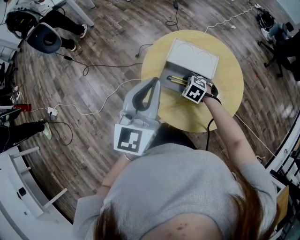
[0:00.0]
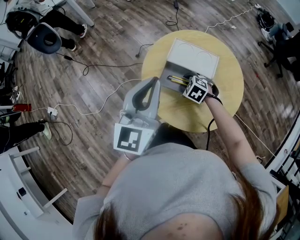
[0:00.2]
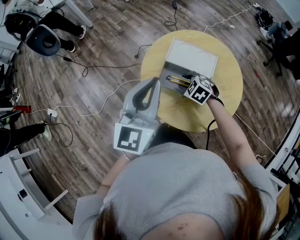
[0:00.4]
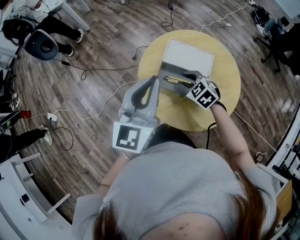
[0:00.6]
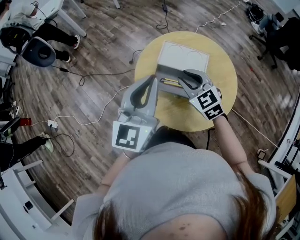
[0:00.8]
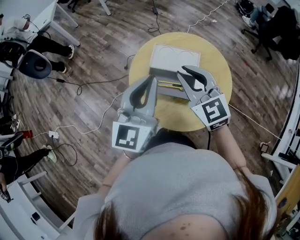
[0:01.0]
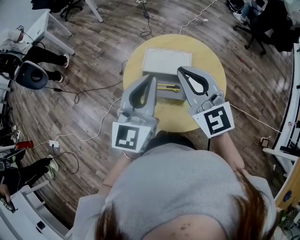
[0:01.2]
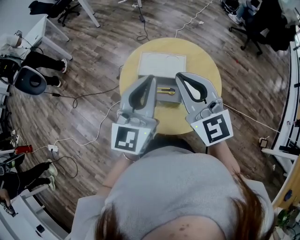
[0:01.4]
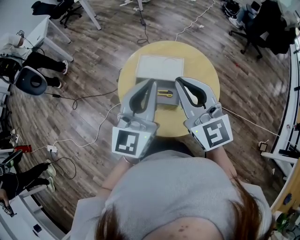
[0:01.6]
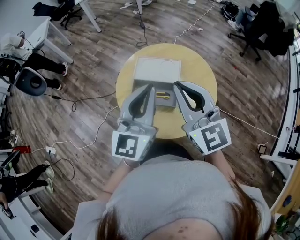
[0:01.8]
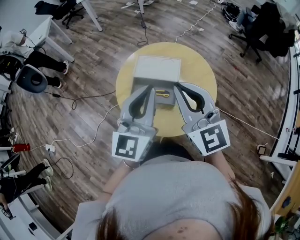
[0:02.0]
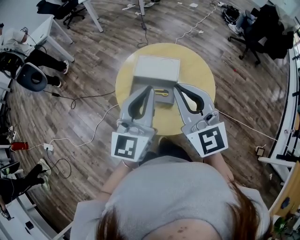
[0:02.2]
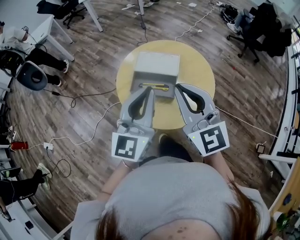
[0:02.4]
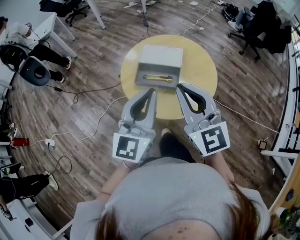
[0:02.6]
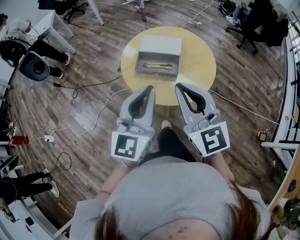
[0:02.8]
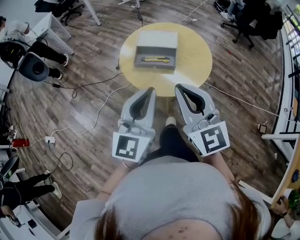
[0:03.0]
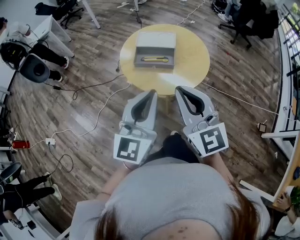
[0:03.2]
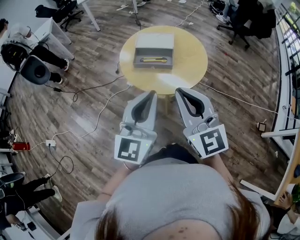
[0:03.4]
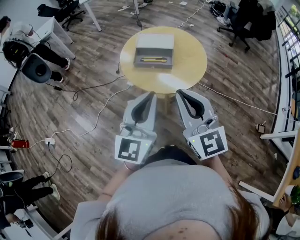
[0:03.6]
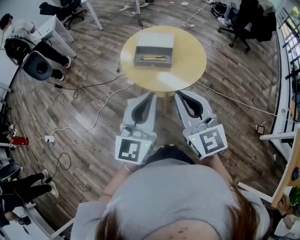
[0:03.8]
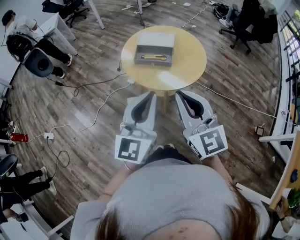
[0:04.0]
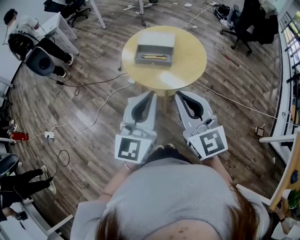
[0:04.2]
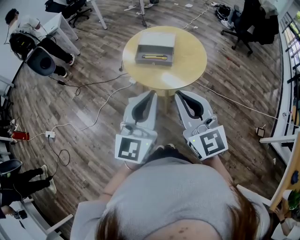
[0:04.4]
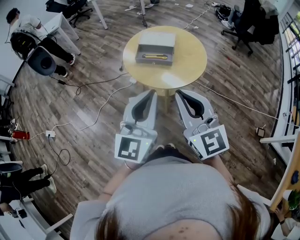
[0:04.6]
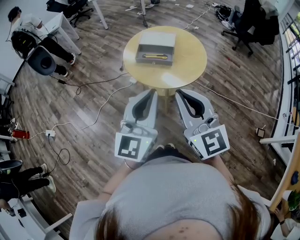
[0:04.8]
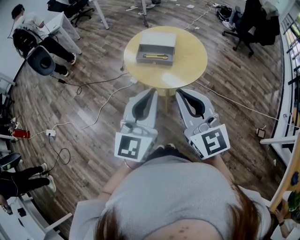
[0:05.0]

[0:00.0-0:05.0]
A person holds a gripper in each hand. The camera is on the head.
0:00.0 to 0:01.6: The right gripper shifts about 35 cm upward, angles its fingers upward, by roughly 70 degrees, and closes its fingers. Meanwhile the left gripper moves to the right, about 10 cm.
0:01.6 to 0:03.4: Both grippers move backward, some 25 cm.
0:03.4 to 0:05.0: The two grippers go some 5 cm backward.

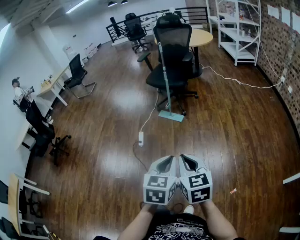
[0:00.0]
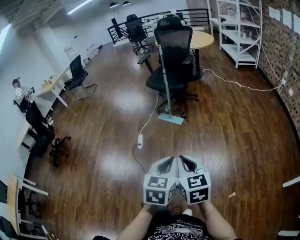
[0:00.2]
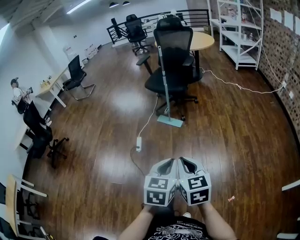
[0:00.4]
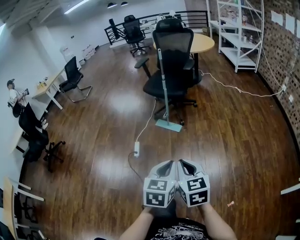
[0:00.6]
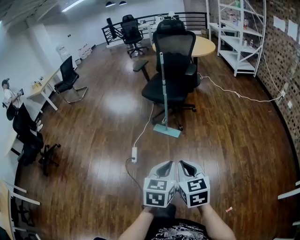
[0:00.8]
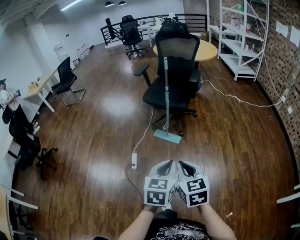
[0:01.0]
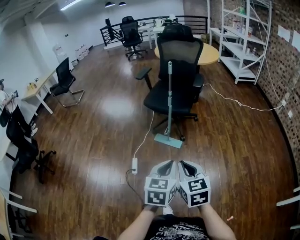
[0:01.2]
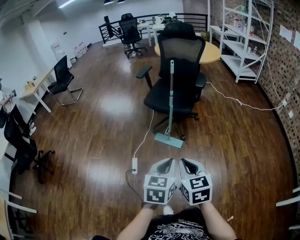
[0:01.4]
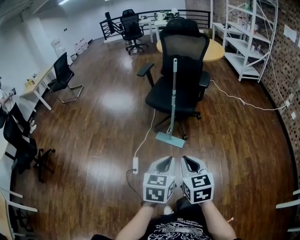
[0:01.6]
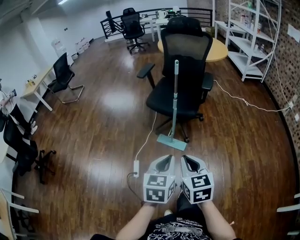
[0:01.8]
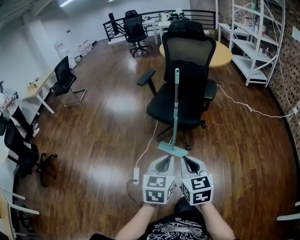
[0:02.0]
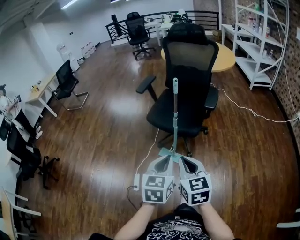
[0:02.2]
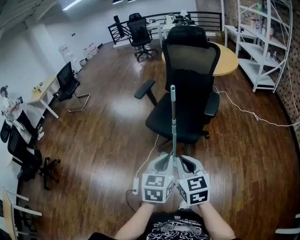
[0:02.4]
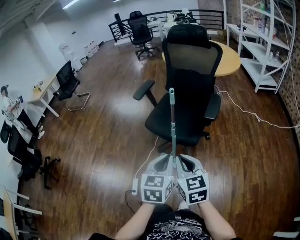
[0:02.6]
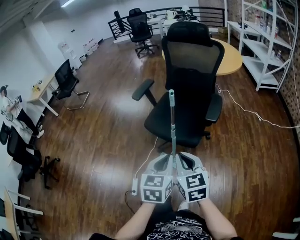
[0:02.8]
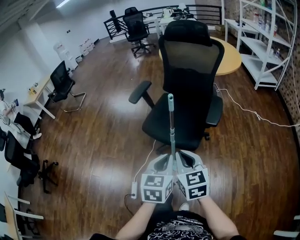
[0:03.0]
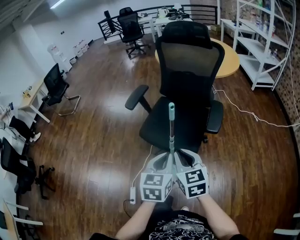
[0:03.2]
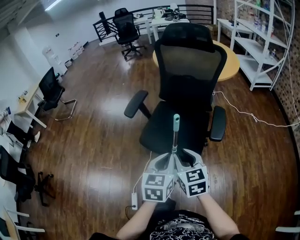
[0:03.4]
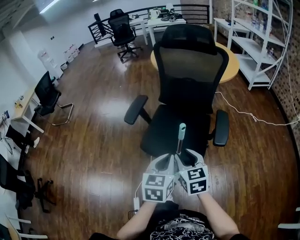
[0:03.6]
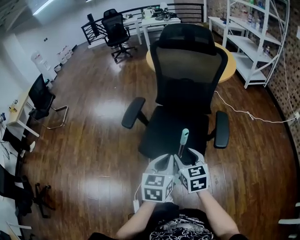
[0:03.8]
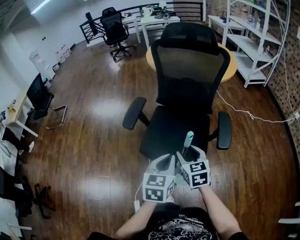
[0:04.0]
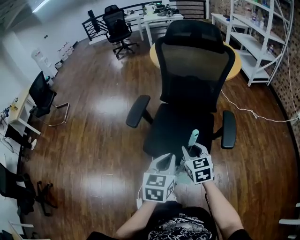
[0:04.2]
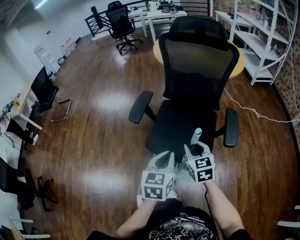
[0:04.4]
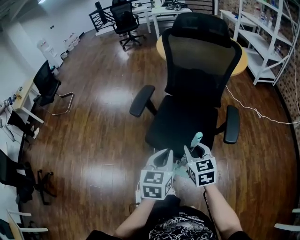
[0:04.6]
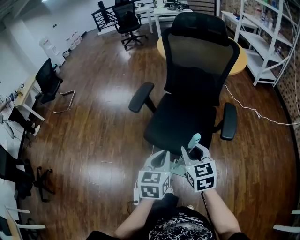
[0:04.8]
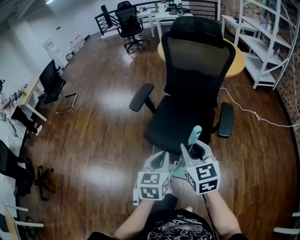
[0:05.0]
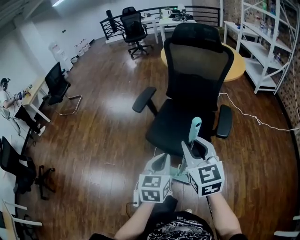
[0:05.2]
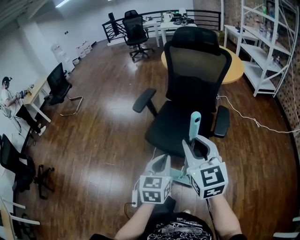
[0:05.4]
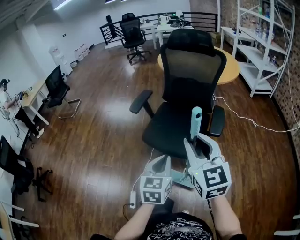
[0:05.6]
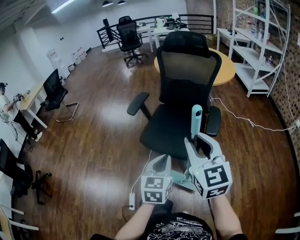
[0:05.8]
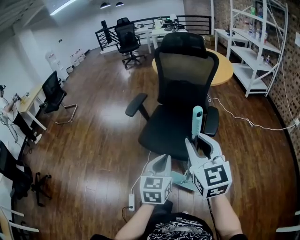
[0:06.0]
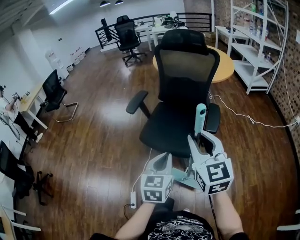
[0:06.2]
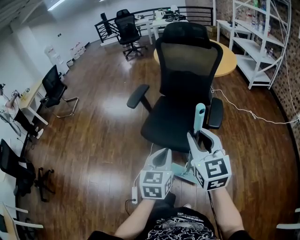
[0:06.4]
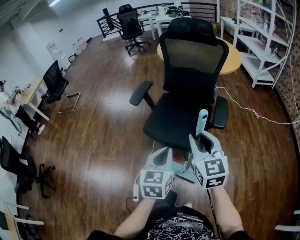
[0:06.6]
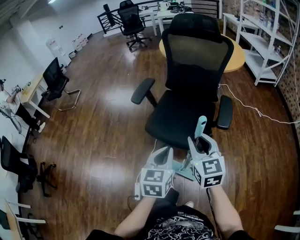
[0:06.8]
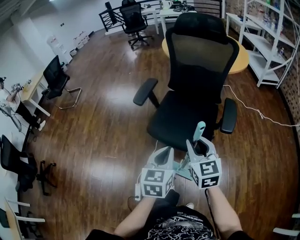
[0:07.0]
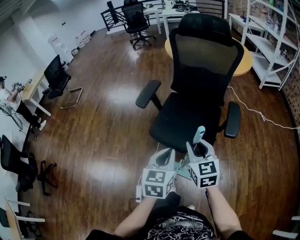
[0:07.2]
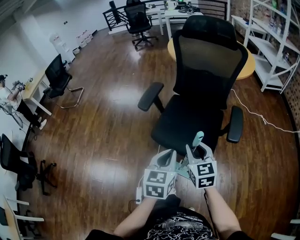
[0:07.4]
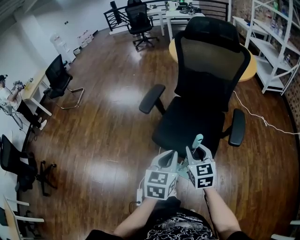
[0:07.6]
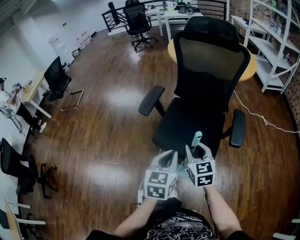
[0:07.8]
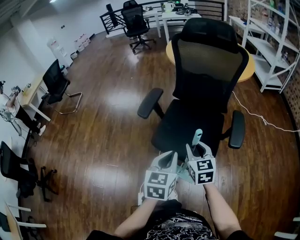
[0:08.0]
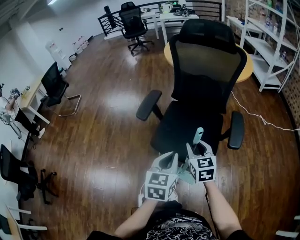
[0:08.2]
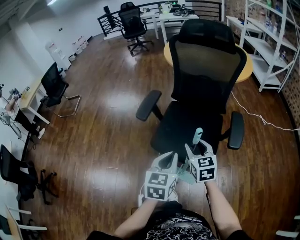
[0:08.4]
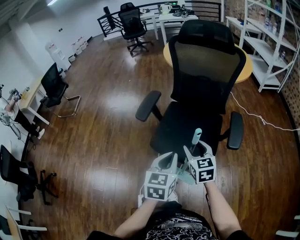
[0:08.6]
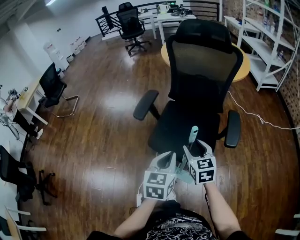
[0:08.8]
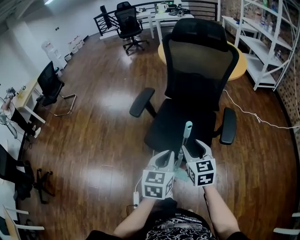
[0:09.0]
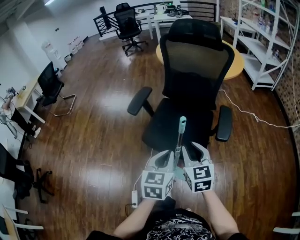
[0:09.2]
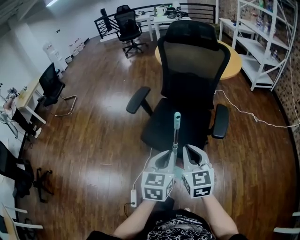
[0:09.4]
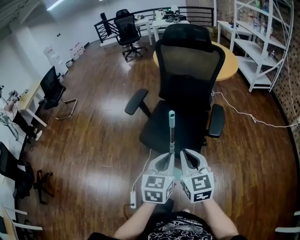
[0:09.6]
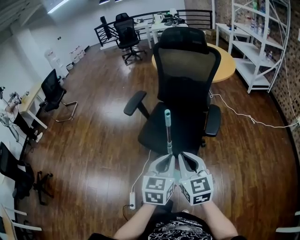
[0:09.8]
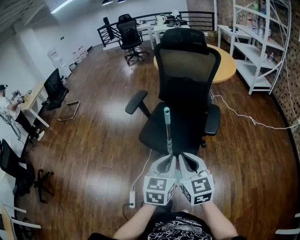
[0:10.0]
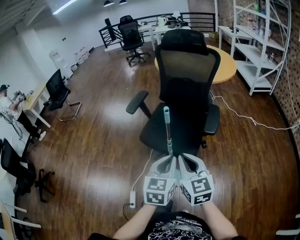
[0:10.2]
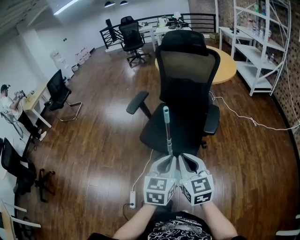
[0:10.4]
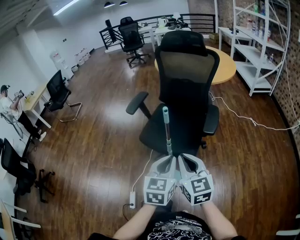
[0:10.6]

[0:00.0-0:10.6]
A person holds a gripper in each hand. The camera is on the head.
0:00.0 to 0:01.6: The two grippers go roughly 40 cm forward.
0:01.6 to 0:03.0: Both grippers travel together forward, about 35 cm.
0:03.0 to 0:04.6: The left gripper shifts some 20 cm forward and to the left; the right gripper is displaced forward by some 20 cm, and opens up.
0:04.6 to 0:06.0: The left gripper is displaced backward and to the right by about 15 cm, while the right gripper shifts about 25 cm upward and backward, and changes its angle by approximately 20 degrees.
0:06.0 to 0:07.6: The right gripper heads downward and forward, covering roughly 25 cm. Meanwhile the left gripper moves forward, to the left and downward, about 15 cm.
0:07.6 to 0:09.0: The right gripper opens its fingers.
0:09.0 to 0:10.6: The left gripper goes roughly 15 cm backward and to the right, while the right gripper shifts roughly 20 cm backward and upward, and closes up.

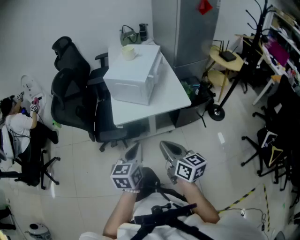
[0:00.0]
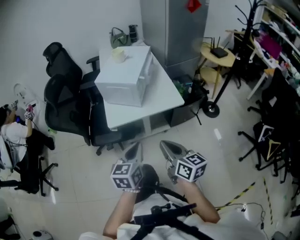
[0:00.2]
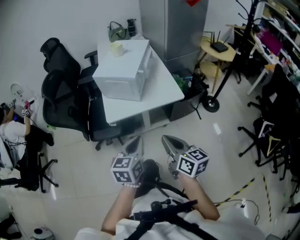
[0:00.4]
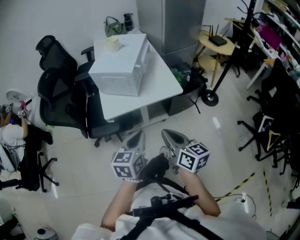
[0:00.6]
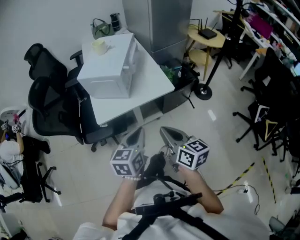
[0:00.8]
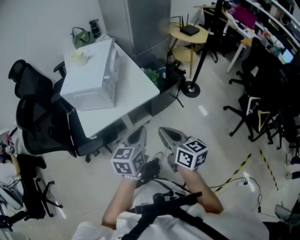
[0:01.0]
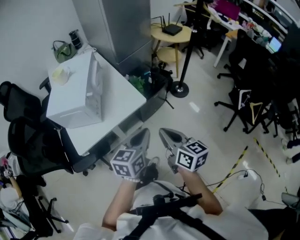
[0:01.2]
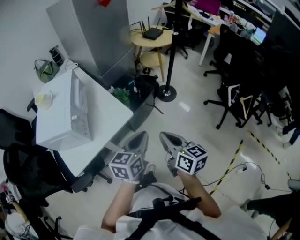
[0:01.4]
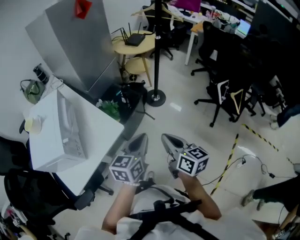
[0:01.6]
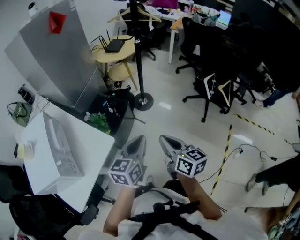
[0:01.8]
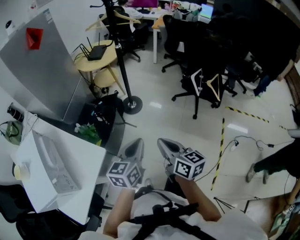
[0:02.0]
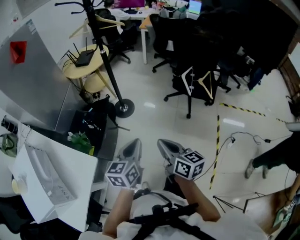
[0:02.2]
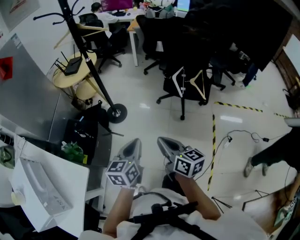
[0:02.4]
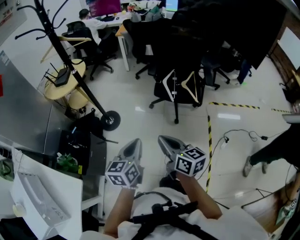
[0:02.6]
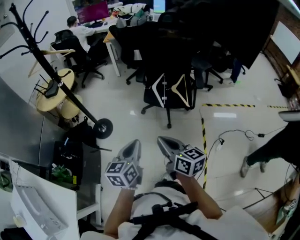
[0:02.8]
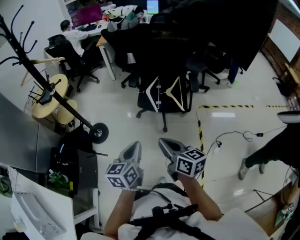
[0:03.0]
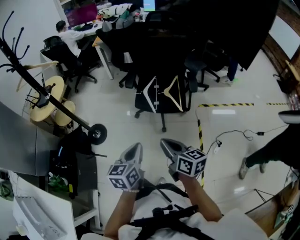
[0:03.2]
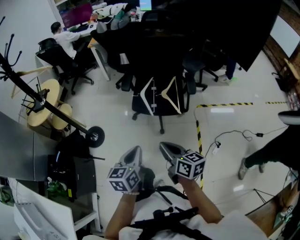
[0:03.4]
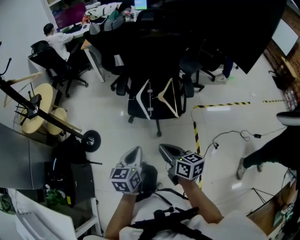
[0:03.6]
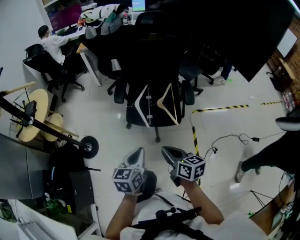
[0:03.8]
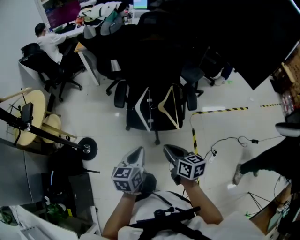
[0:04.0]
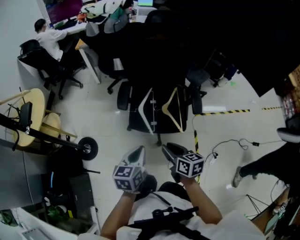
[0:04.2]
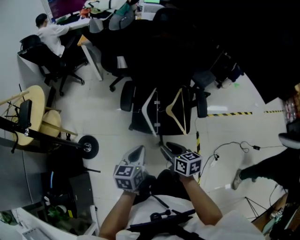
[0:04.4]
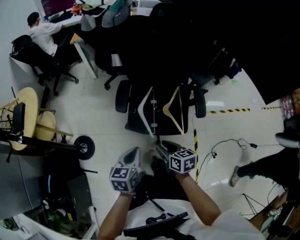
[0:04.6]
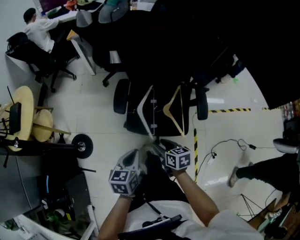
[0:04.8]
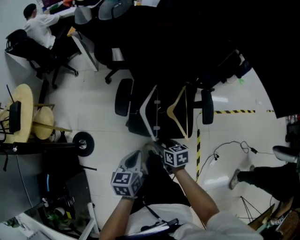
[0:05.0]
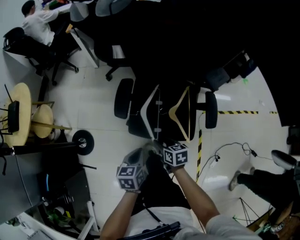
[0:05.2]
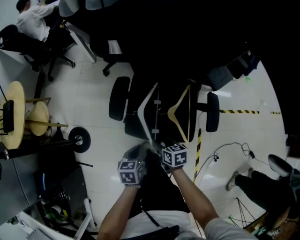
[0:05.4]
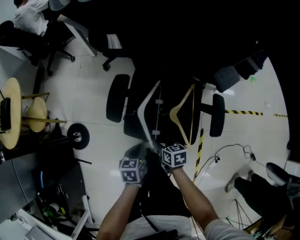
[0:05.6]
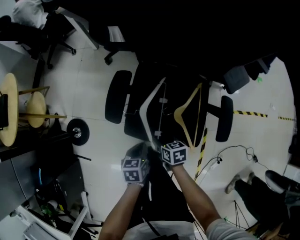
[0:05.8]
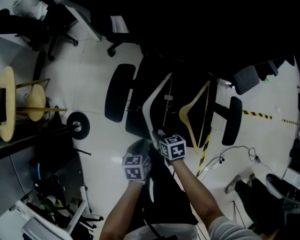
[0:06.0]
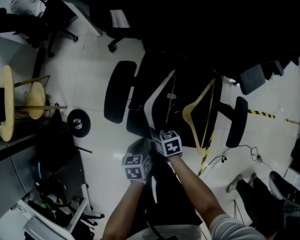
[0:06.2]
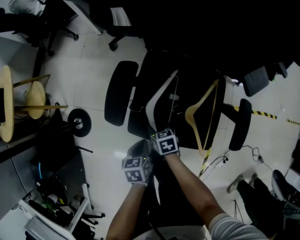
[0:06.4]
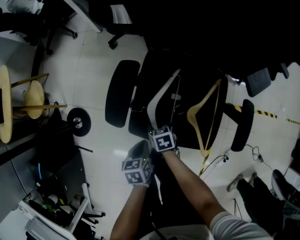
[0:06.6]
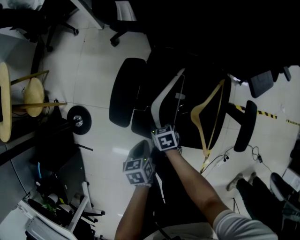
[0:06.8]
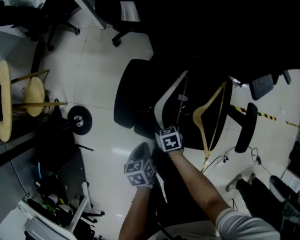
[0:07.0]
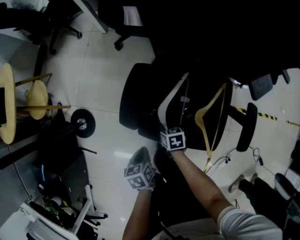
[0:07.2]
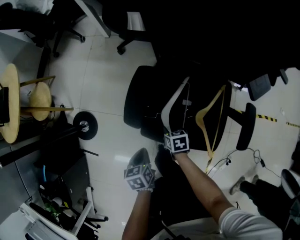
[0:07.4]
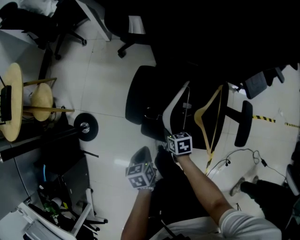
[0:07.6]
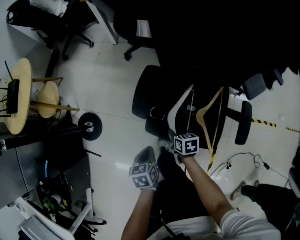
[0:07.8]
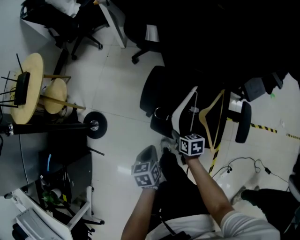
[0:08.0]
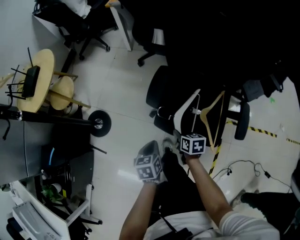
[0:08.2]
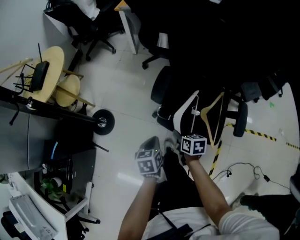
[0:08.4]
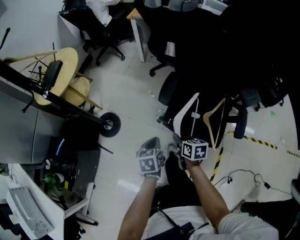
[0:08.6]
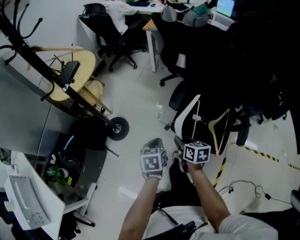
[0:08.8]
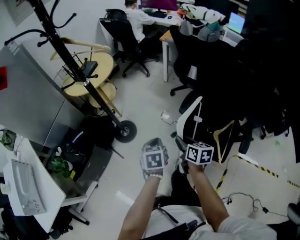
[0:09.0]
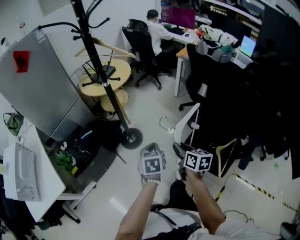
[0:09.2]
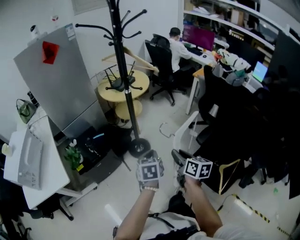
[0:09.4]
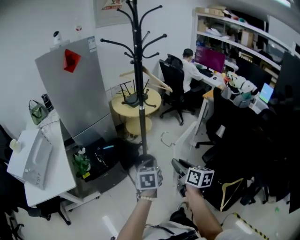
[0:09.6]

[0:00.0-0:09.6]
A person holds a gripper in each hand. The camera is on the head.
0:00.0 to 0:01.6: The right gripper changes place by approximately 35 cm, and turns by some 40 degrees; the left gripper shifts by some 40 cm, and swivels about 50 degrees.
0:01.6 to 0:03.2: The pair of grippers is taken about 60 cm. The left gripper swivels some 30 degrees, while the right gripper rotates about 30 degrees.
0:03.2 to 0:04.8: Both grippers travel together forward and downward, approximately 40 cm. The right gripper changes its angle by about 30 degrees, and opens up.
0:04.8 to 0:06.4: Both grippers travel together downward and forward, roughly 35 cm. The left gripper changes its angle by some 30 degrees; the right gripper changes its angle by about 20 degrees.
0:06.4 to 0:08.0: The left gripper travels upward and to the left by approximately 15 cm. Meanwhile the right gripper heads upward, covering approximately 10 cm, and closes up.
0:08.0 to 0:09.6: The right gripper is displaced upward by about 50 cm, and angles its fingers upward, by roughly 40 degrees. Meanwhile the left gripper ends up approximately 50 cm from where it was, and changes its angle by some 40 degrees.
